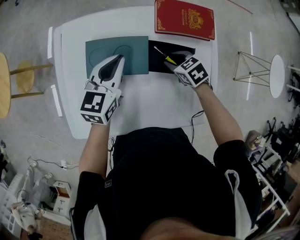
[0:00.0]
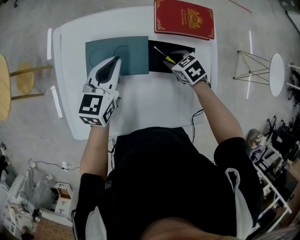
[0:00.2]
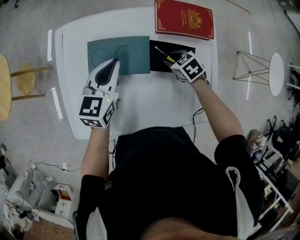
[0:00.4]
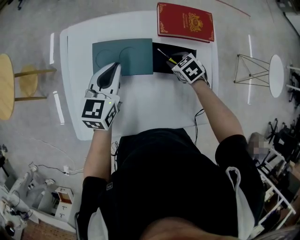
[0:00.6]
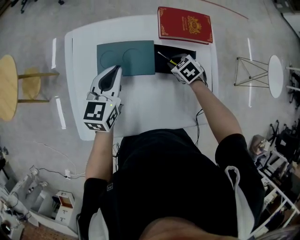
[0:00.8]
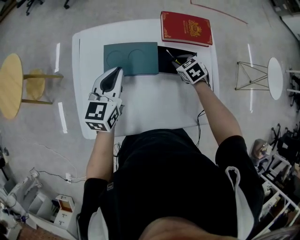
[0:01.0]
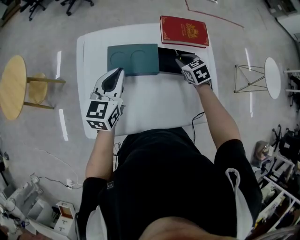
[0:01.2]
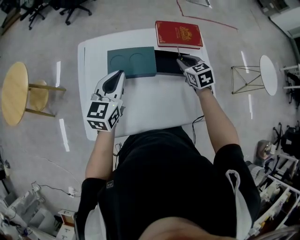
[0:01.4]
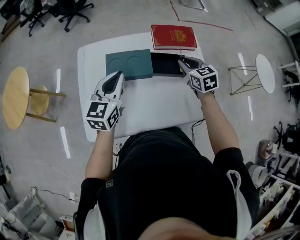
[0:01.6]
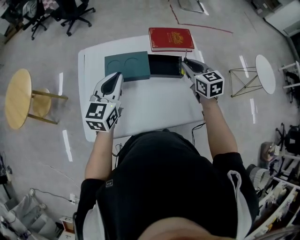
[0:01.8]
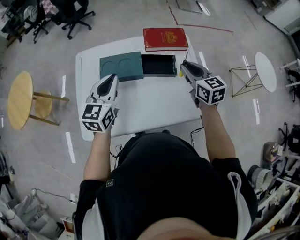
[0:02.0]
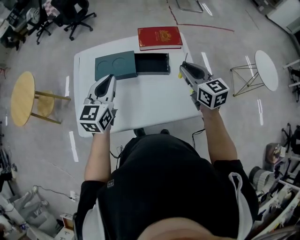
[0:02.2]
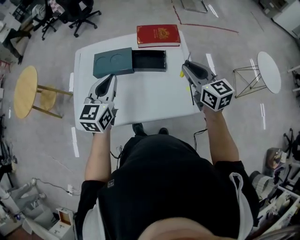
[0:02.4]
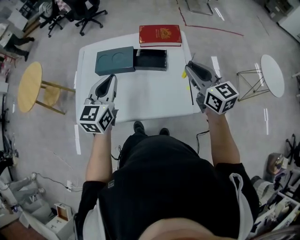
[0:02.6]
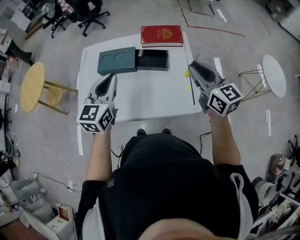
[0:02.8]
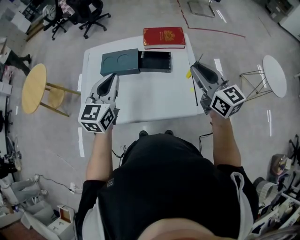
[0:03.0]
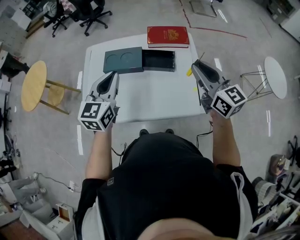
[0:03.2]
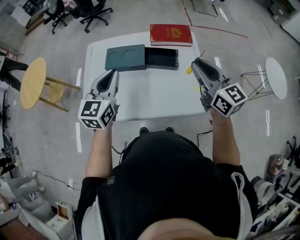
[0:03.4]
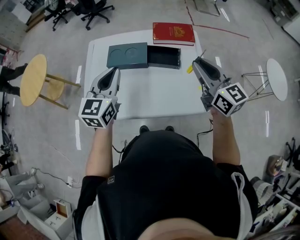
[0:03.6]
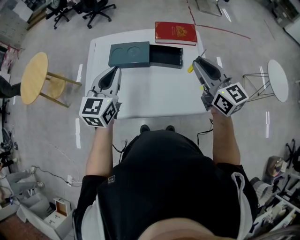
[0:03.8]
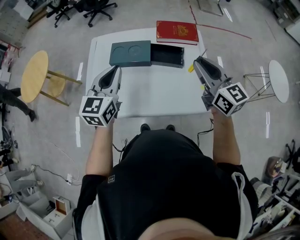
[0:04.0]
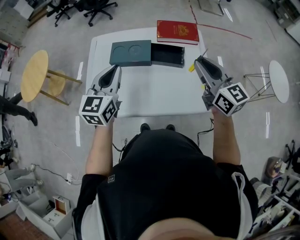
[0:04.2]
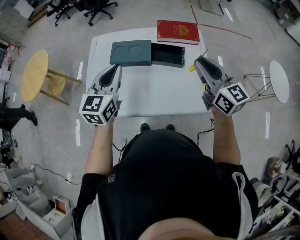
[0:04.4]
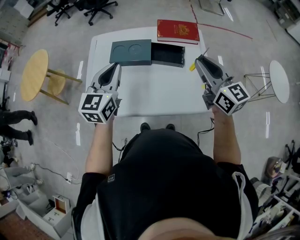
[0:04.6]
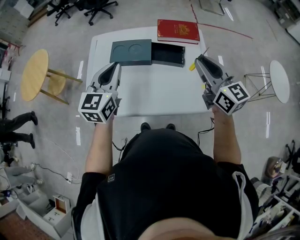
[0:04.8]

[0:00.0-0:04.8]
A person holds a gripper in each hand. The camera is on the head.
0:00.0 to 0:01.6: The right gripper moves upward, about 15 cm, and swivels some 30 degrees; the left gripper travels backward, upward and to the left by approximately 15 cm.
0:01.6 to 0:03.2: The right gripper shifts roughly 25 cm backward, upward and to the right, and tilts its fingers roughly 30 degrees upward. The left gripper heads backward, to the right and upward, covering about 15 cm.
0:03.2 to 0:04.8: The grippers make only small movements.

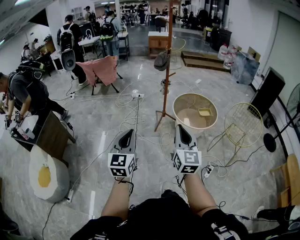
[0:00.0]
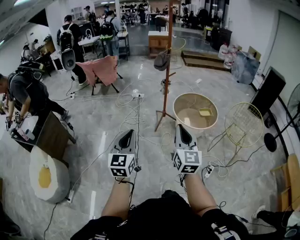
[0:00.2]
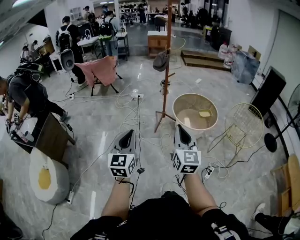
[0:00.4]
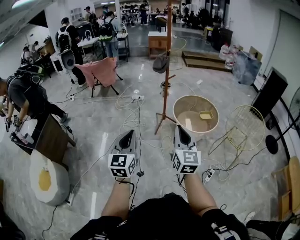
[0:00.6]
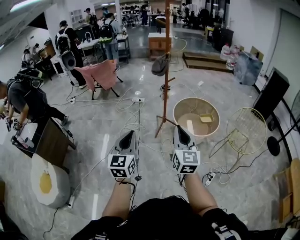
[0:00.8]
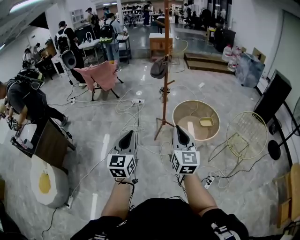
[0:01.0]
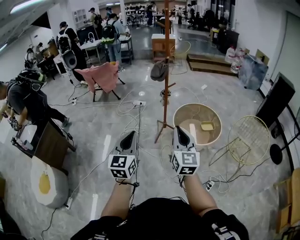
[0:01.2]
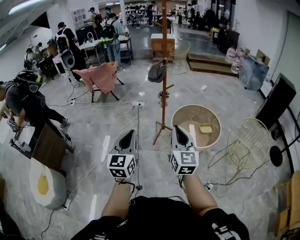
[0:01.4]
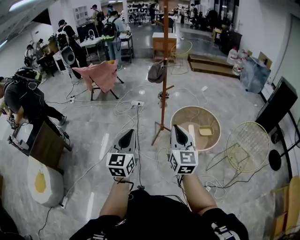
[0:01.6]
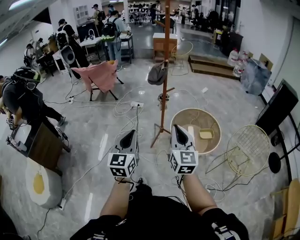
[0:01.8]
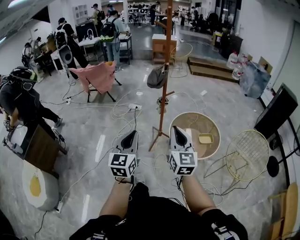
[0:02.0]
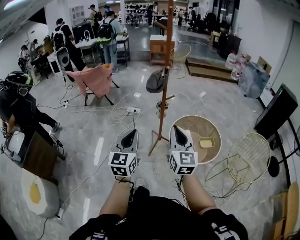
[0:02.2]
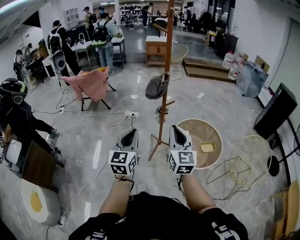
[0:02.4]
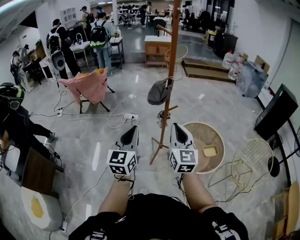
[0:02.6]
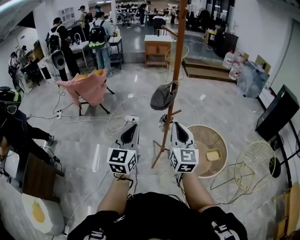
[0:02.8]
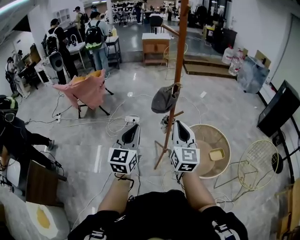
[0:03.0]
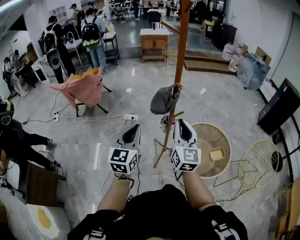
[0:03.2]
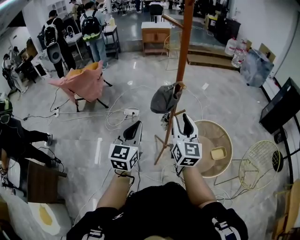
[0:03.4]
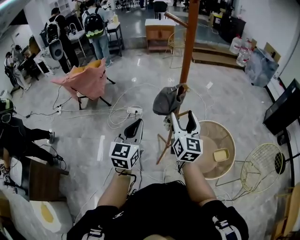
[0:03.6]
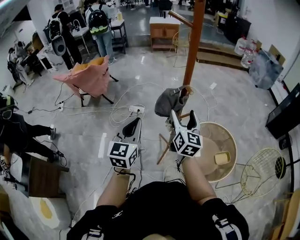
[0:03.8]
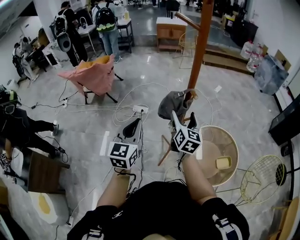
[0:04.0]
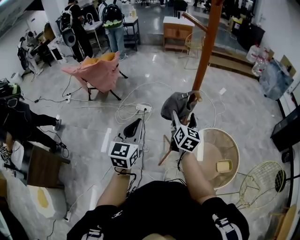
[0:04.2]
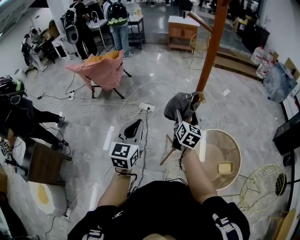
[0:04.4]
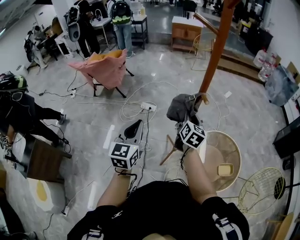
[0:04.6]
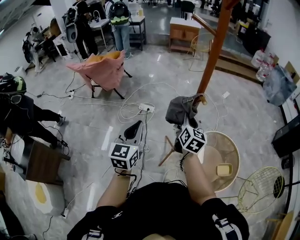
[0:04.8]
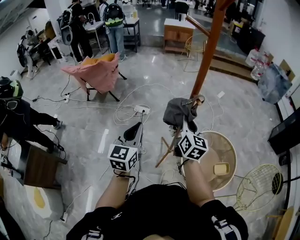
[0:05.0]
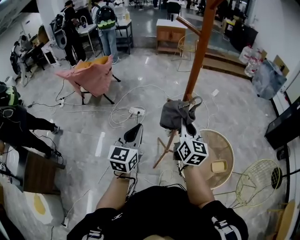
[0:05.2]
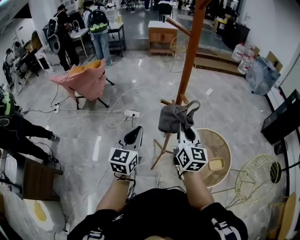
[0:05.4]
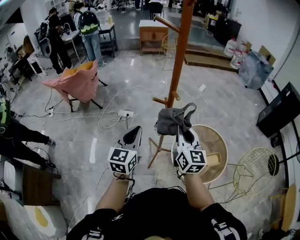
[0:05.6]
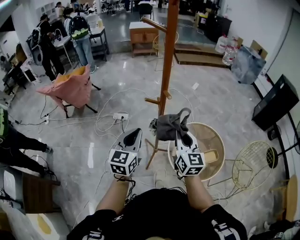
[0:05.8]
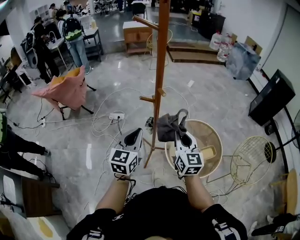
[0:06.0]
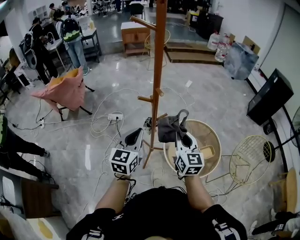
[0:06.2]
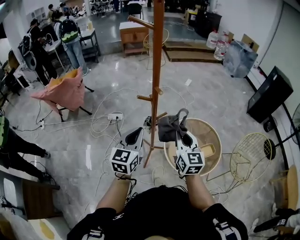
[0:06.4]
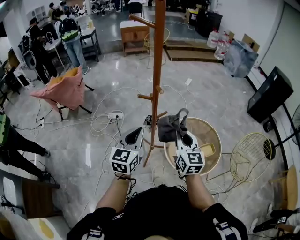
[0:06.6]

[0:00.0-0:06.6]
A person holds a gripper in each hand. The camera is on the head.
0:00.0 to 0:01.6: The left gripper shifts roughly 35 cm forward and to the right. Meanwhile the right gripper travels forward by roughly 30 cm.
0:01.6 to 0:03.2: The two grippers travel together, forward, some 60 cm.
0:03.2 to 0:05.0: The left gripper goes approximately 10 cm forward. Meanwhile the right gripper heads forward, covering roughly 20 cm, and opens, then closes again.
0:05.0 to 0:06.6: The left gripper travels to the right by some 15 cm. The right gripper travels to the right and backward by approximately 15 cm.

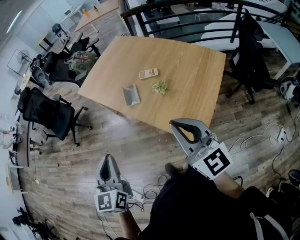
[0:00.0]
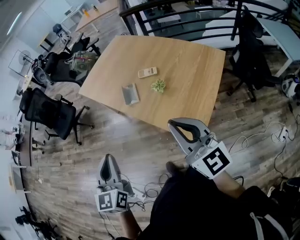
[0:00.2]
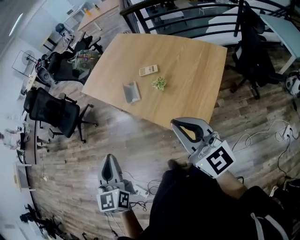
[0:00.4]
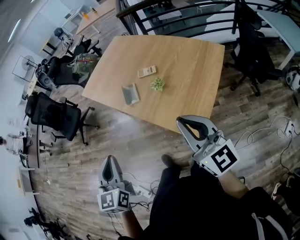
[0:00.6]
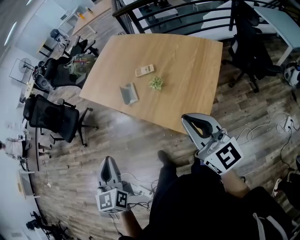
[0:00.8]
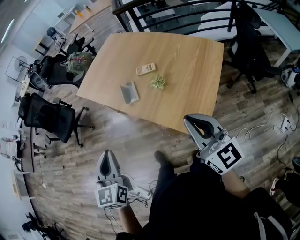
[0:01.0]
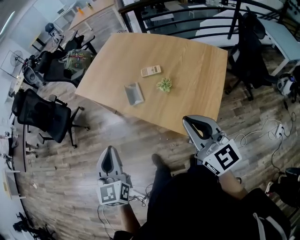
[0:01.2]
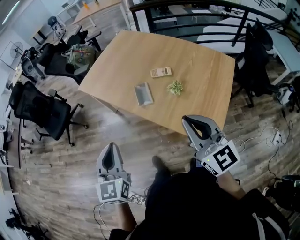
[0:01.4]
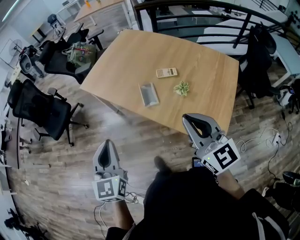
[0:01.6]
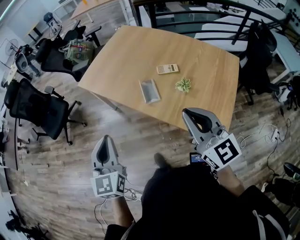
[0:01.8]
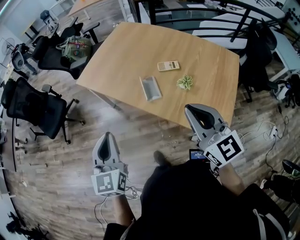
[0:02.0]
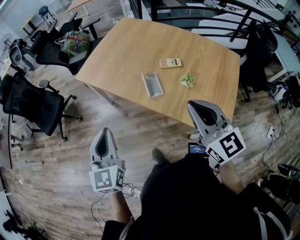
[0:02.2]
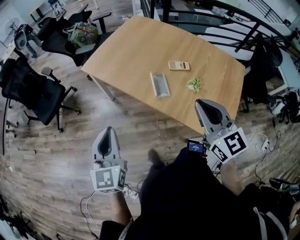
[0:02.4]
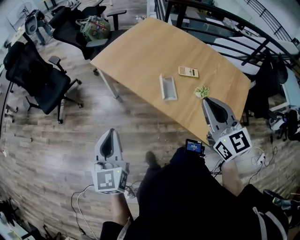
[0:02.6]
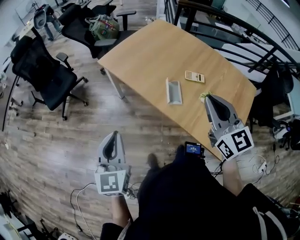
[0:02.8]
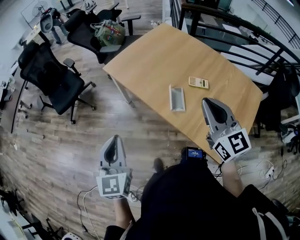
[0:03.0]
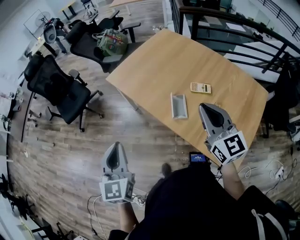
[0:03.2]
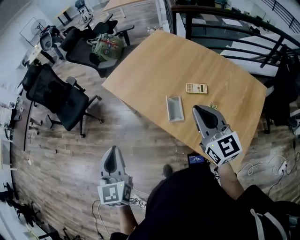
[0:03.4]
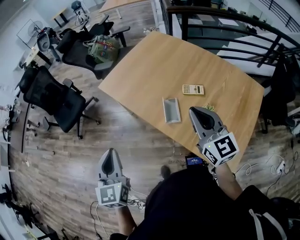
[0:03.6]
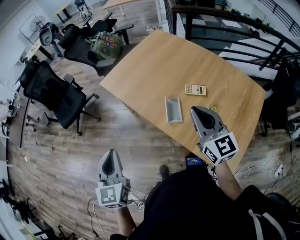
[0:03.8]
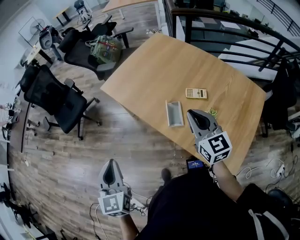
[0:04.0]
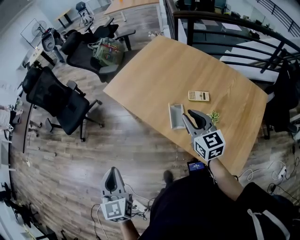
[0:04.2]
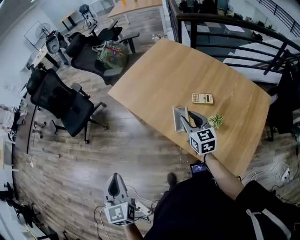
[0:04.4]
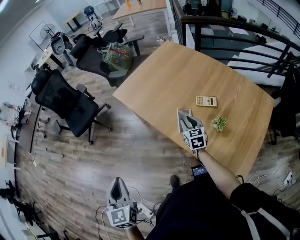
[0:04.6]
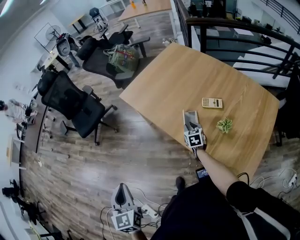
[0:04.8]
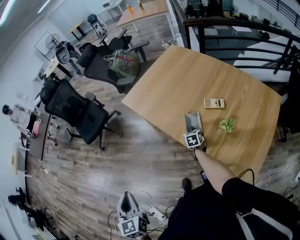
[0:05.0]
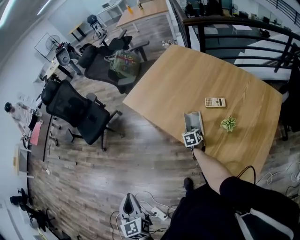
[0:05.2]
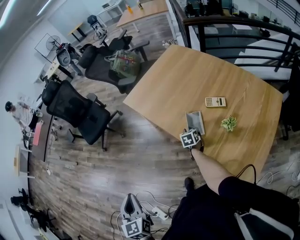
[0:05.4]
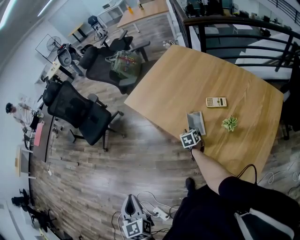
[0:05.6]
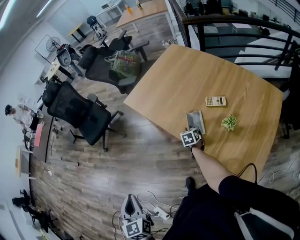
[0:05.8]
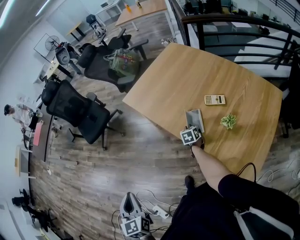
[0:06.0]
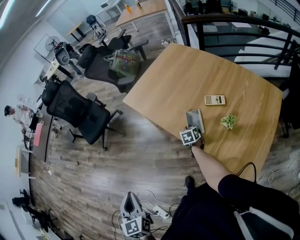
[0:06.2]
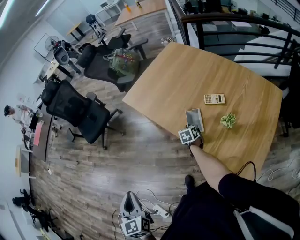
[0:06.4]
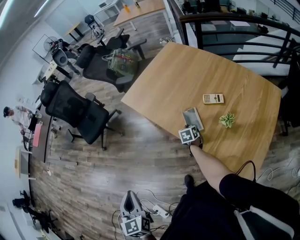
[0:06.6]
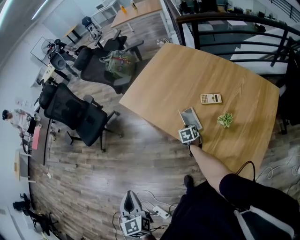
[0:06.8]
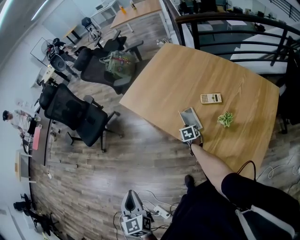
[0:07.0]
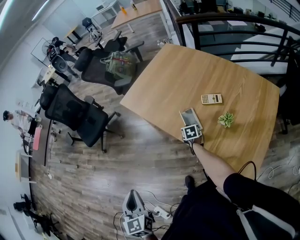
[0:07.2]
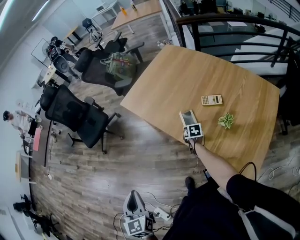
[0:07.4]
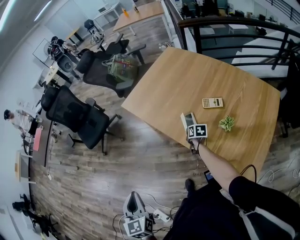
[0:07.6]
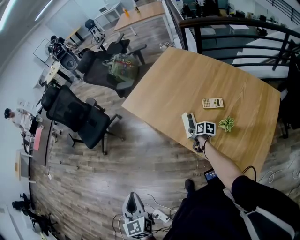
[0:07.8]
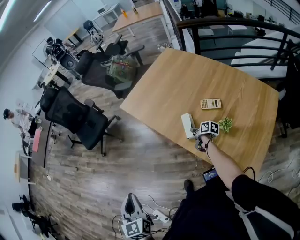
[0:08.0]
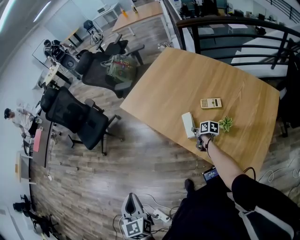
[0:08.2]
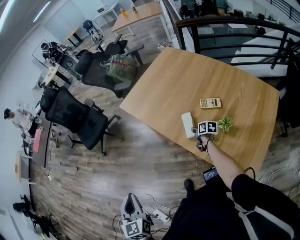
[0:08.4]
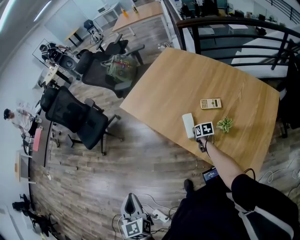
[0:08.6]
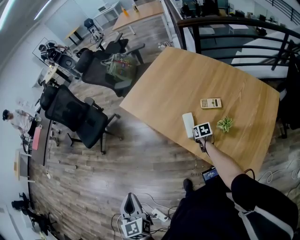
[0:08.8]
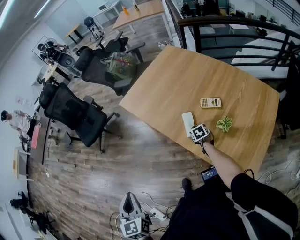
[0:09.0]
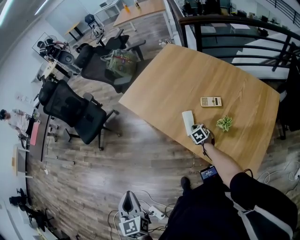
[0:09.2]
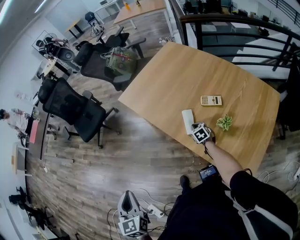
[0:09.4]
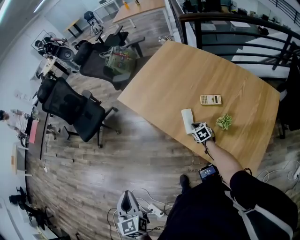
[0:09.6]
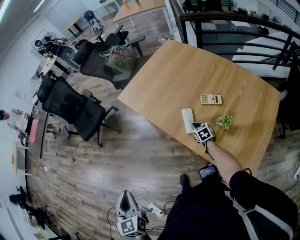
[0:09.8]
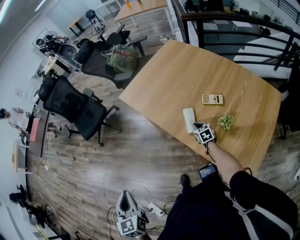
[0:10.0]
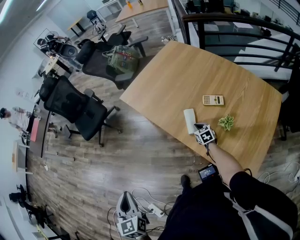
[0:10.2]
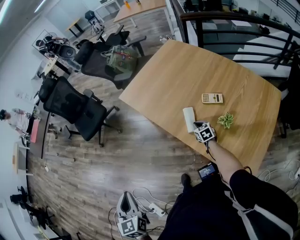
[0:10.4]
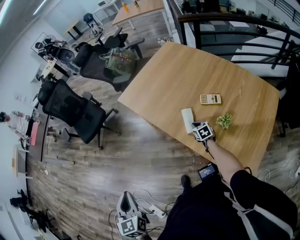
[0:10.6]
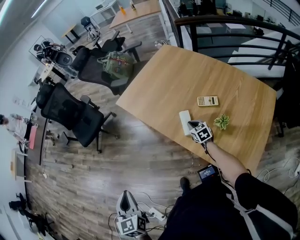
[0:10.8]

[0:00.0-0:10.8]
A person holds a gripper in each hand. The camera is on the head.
0:00.0 to 0:01.6: The grippers both shift forward and to the left by roughly 15 cm.
0:01.6 to 0:03.0: The left gripper moves to the left, some 10 cm; the right gripper travels forward and to the left by some 15 cm.
0:03.0 to 0:04.6: The right gripper goes about 30 cm downward and forward, swivels roughly 30 degrees, and opens its fingers; the left gripper changes place by about 5 cm.
0:04.6 to 0:06.2: The right gripper moves downward, some 10 cm, and swivels roughly 20 degrees.
0:06.2 to 0:07.8: The right gripper rolls clockwise, seen from behind, by some 40 degrees.
0:07.8 to 0:09.2: The right gripper twists about 60 degrees counterclockwise, seen from behind.
0:09.2 to 0:10.8: The right gripper moves upward, roughly 5 cm.

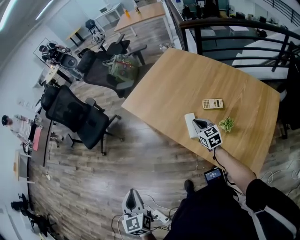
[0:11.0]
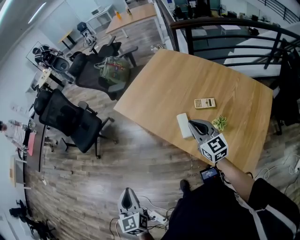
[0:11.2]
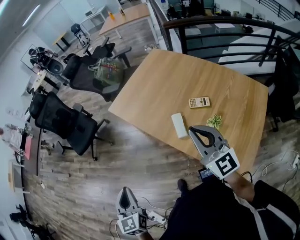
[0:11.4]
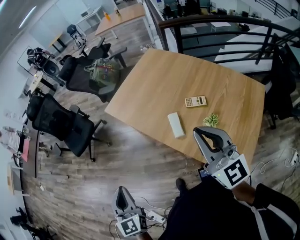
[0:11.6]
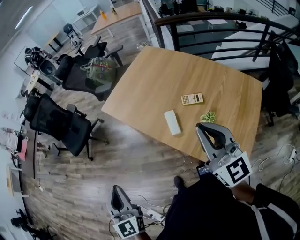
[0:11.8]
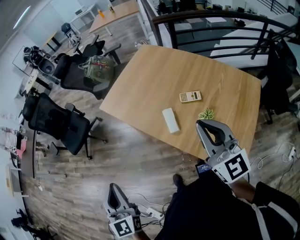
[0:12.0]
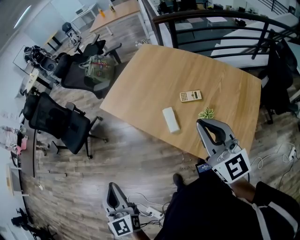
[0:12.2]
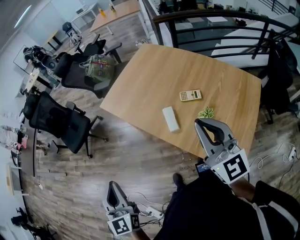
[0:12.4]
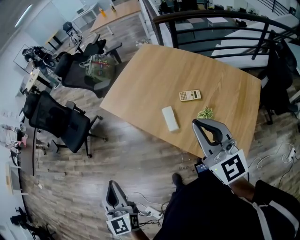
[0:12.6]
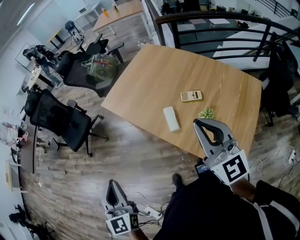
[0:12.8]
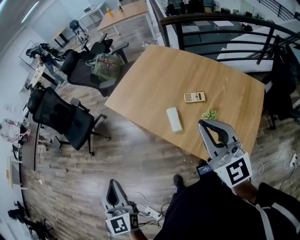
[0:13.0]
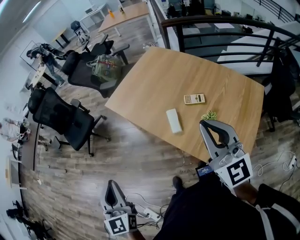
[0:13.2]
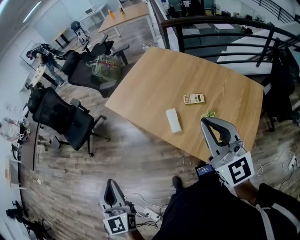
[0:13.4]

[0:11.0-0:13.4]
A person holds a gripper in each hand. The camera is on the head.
0:11.0 to 0:12.2: The left gripper travels upward by some 10 cm; the right gripper goes some 35 cm upward and backward, and swivels about 30 degrees.
0:12.2 to 0:13.4: There are only small adjustments of the grippers.
